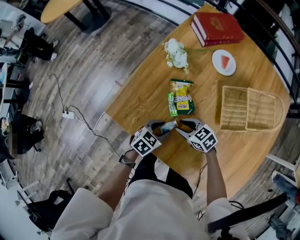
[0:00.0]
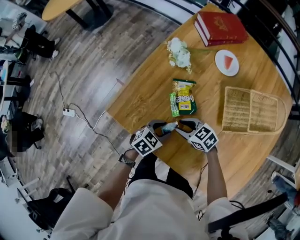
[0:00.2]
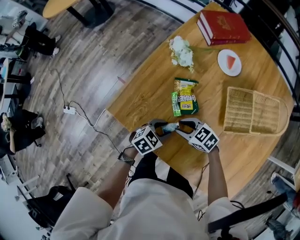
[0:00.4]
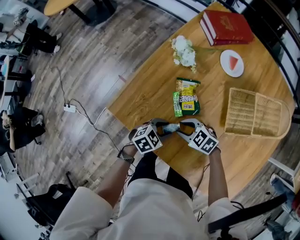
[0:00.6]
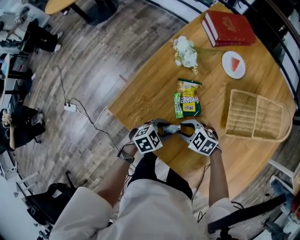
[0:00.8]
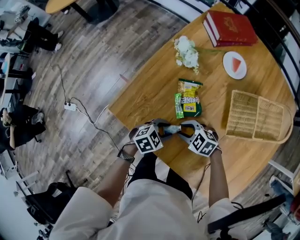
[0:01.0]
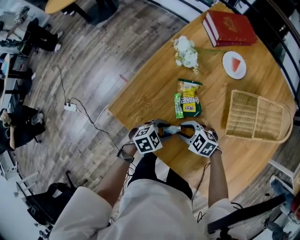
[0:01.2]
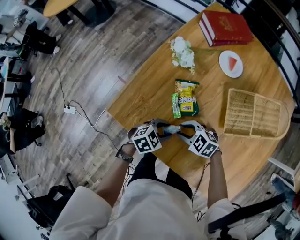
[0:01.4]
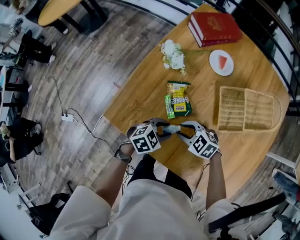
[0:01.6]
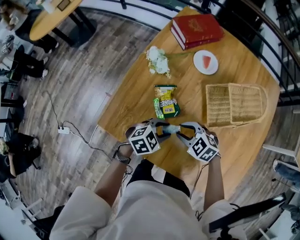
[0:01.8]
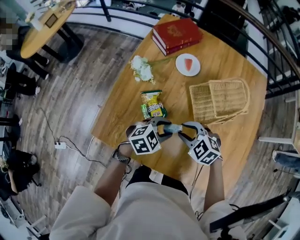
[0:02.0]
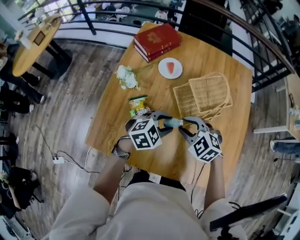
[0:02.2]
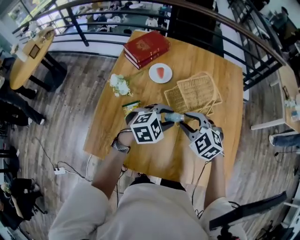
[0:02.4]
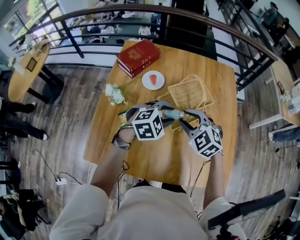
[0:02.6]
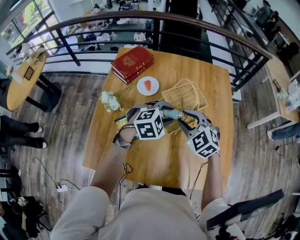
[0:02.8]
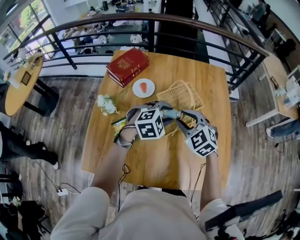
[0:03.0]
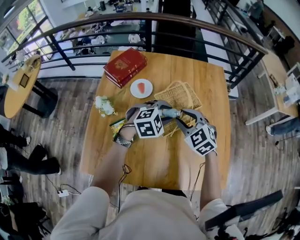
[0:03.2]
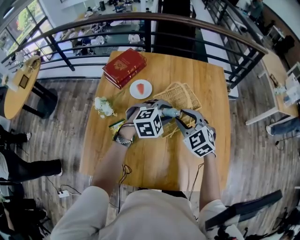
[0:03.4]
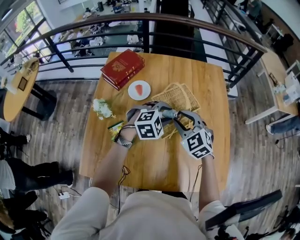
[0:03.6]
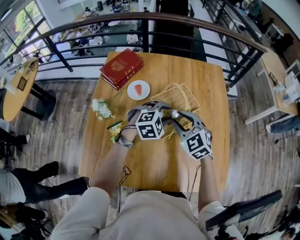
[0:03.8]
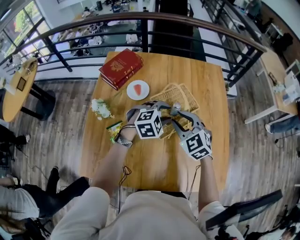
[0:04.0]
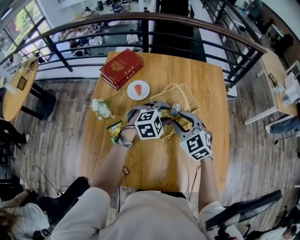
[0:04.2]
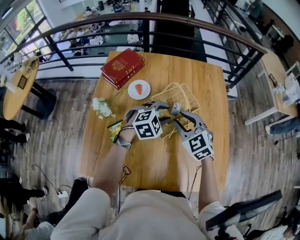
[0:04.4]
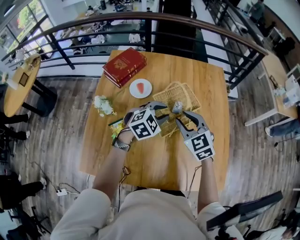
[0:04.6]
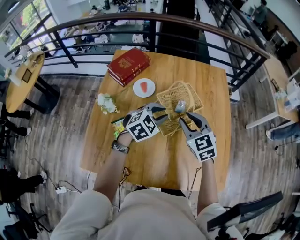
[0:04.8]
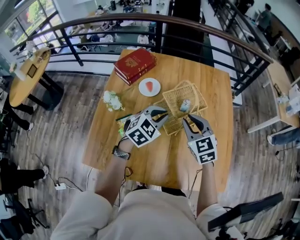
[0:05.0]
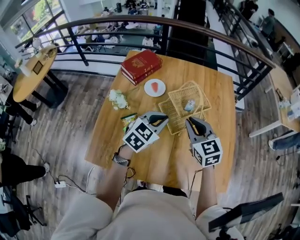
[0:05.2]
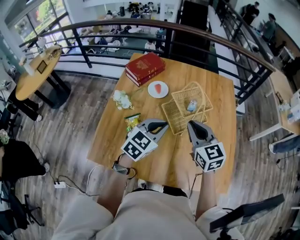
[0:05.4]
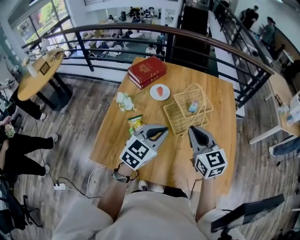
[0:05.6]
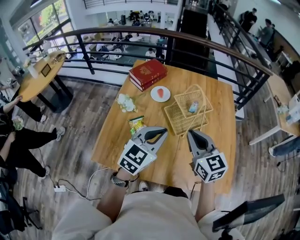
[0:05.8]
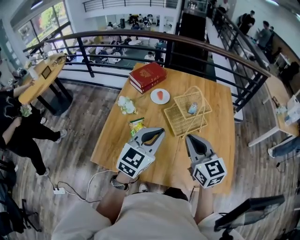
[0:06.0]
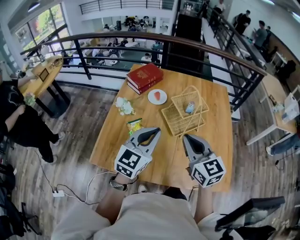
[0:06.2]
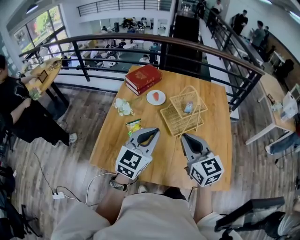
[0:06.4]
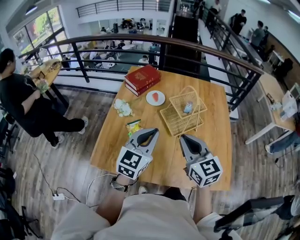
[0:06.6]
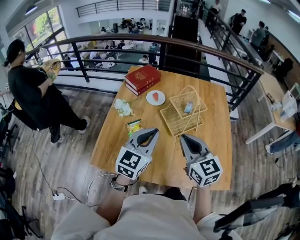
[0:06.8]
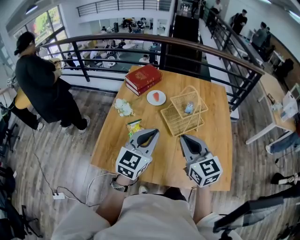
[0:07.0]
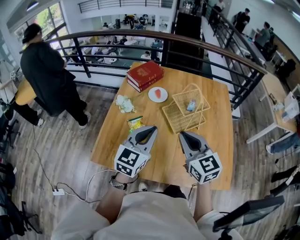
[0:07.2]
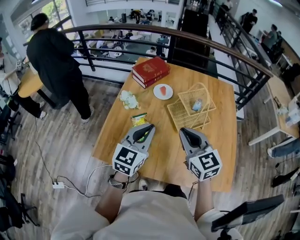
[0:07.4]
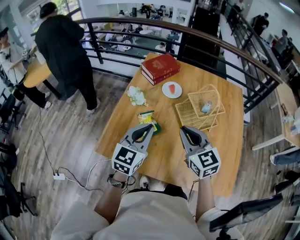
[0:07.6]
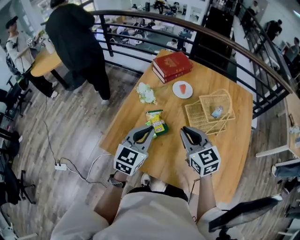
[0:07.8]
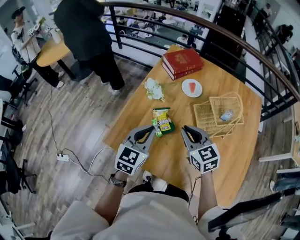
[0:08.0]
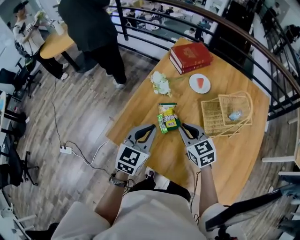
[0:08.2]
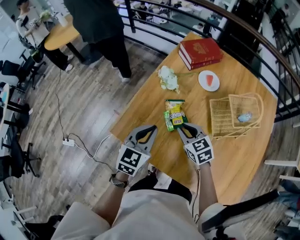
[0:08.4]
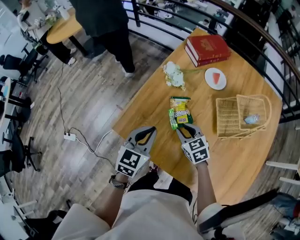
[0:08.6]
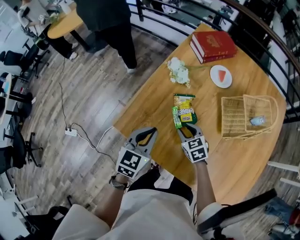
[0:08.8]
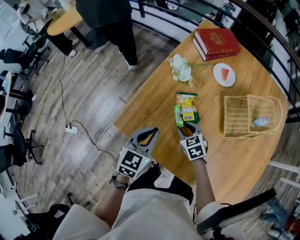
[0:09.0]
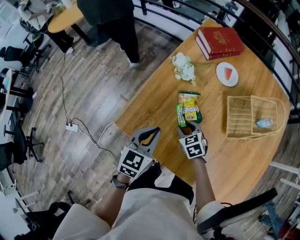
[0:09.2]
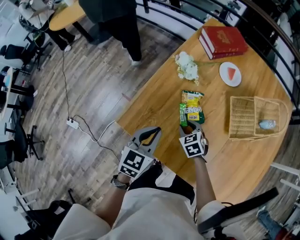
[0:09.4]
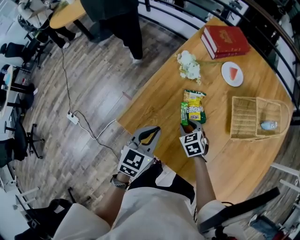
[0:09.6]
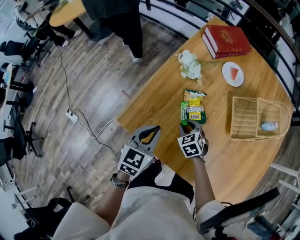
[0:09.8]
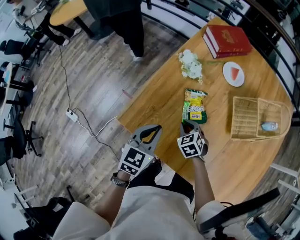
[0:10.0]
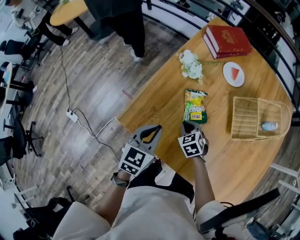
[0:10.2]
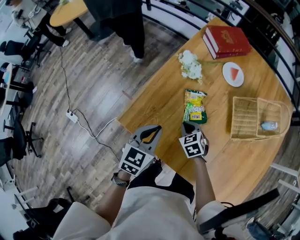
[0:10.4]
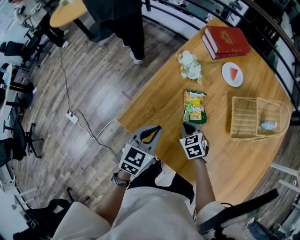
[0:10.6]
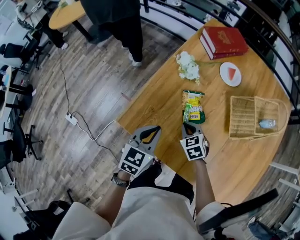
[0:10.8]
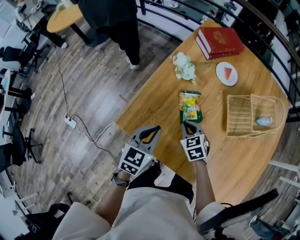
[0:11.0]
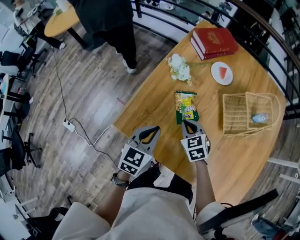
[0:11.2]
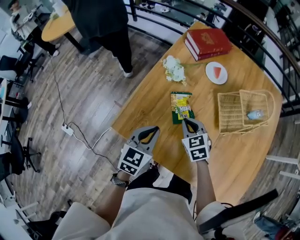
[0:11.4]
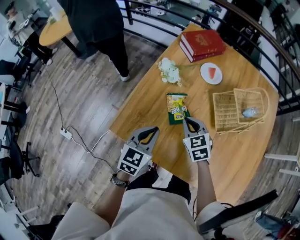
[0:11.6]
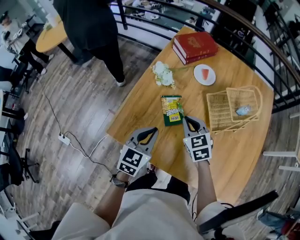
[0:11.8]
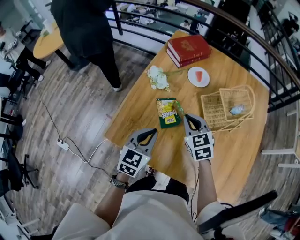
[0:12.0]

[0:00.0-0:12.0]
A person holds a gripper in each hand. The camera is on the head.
0:00.0 to 0:01.6: The right gripper rotates roughly 20 degrees, while the left gripper turns by roughly 20 degrees.
0:01.6 to 0:03.0: The left gripper moves approximately 35 cm, and twists roughly 50 degrees clockwise, seen from behind. Meanwhile the right gripper shifts by about 35 cm, and rotates about 50 degrees.
0:03.0 to 0:04.4: There are only small adjustments of the grippers.
0:04.4 to 0:06.0: The left gripper travels backward, upward and to the left by roughly 30 cm, tips its fingers upward by roughly 30 degrees, and closes, while the right gripper heads backward and upward, covering roughly 20 cm, swivels about 30 degrees, and closes up.
0:06.0 to 0:07.6: Both grippers move to the left, some 10 cm.
0:07.6 to 0:09.0: The left gripper shifts some 20 cm downward and to the left, and swivels about 20 degrees. The right gripper is displaced downward by some 30 cm, tips its fingers downward by some 30 degrees, and opens its fingers.
0:09.0 to 0:10.4: The right gripper closes up.
0:10.4 to 0:12.0: The left gripper travels to the right and upward by some 10 cm. Meanwhile the right gripper goes roughly 20 cm upward and to the right, and rotates some 20 degrees.

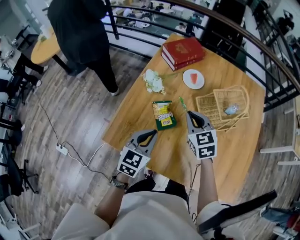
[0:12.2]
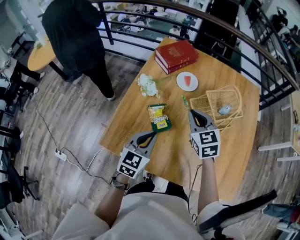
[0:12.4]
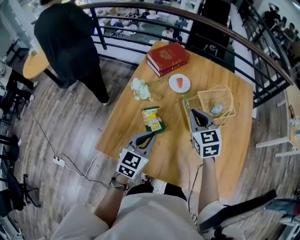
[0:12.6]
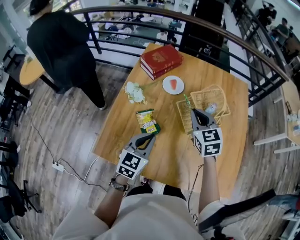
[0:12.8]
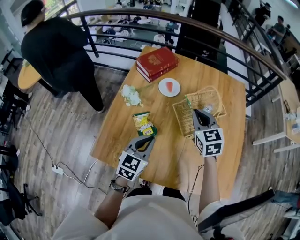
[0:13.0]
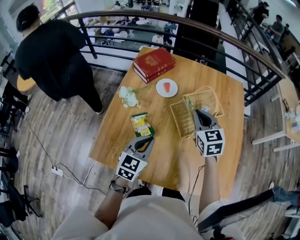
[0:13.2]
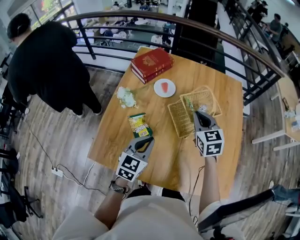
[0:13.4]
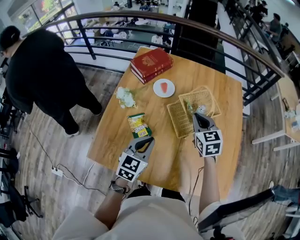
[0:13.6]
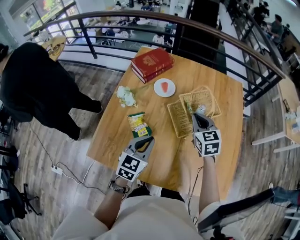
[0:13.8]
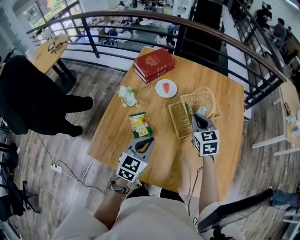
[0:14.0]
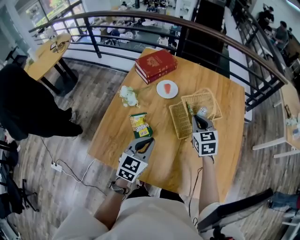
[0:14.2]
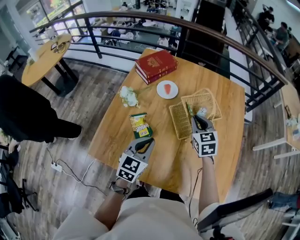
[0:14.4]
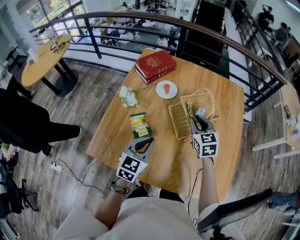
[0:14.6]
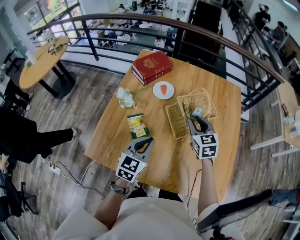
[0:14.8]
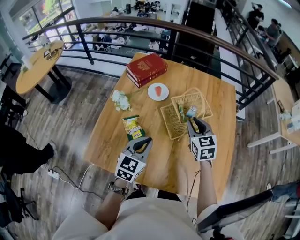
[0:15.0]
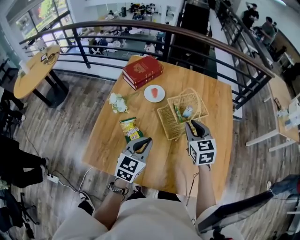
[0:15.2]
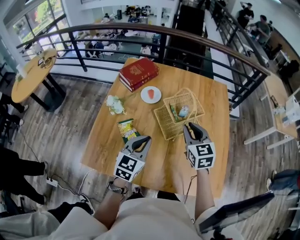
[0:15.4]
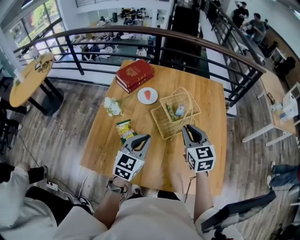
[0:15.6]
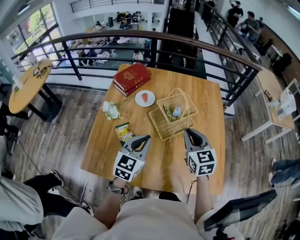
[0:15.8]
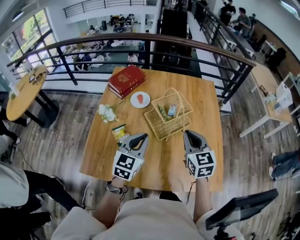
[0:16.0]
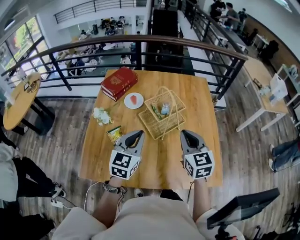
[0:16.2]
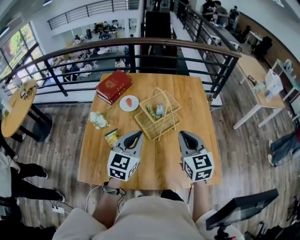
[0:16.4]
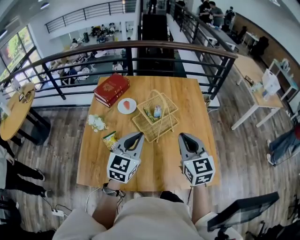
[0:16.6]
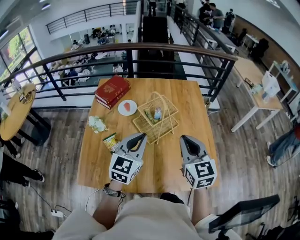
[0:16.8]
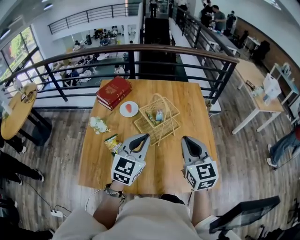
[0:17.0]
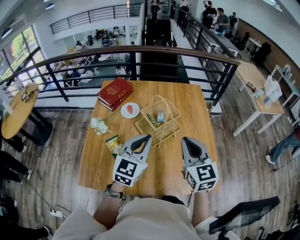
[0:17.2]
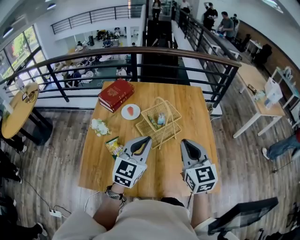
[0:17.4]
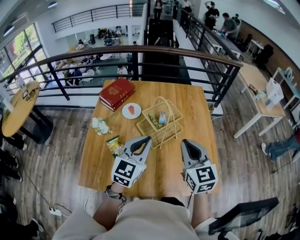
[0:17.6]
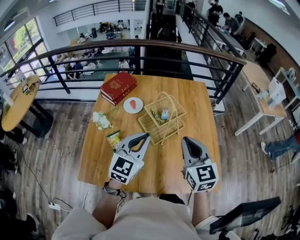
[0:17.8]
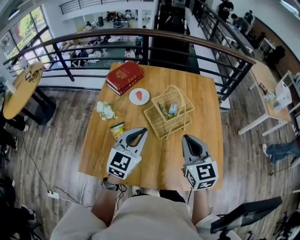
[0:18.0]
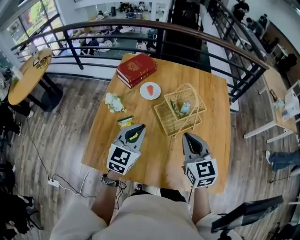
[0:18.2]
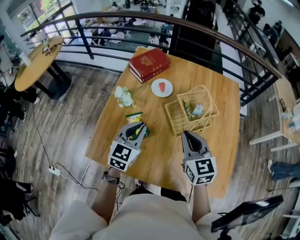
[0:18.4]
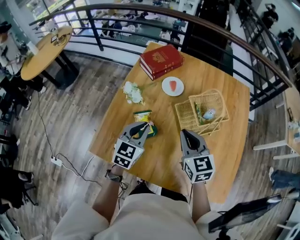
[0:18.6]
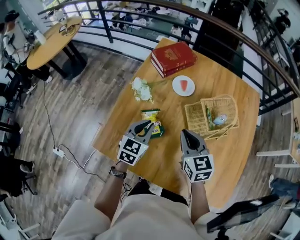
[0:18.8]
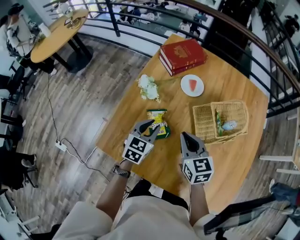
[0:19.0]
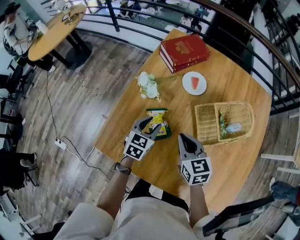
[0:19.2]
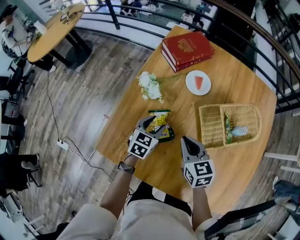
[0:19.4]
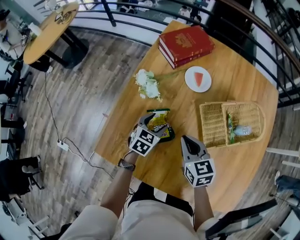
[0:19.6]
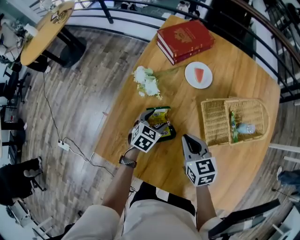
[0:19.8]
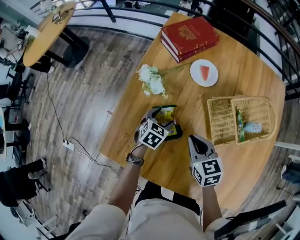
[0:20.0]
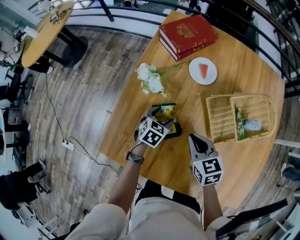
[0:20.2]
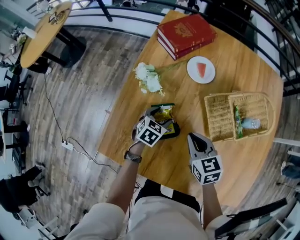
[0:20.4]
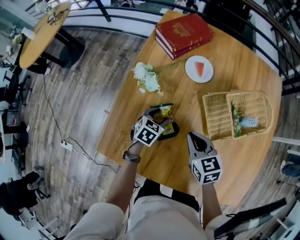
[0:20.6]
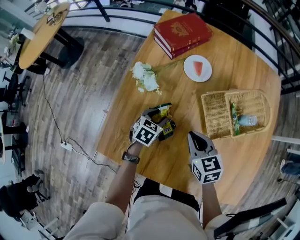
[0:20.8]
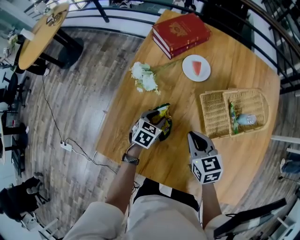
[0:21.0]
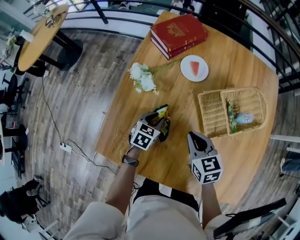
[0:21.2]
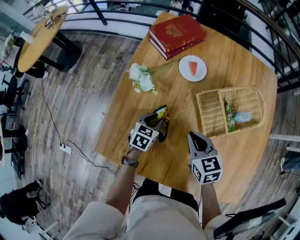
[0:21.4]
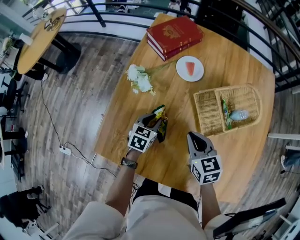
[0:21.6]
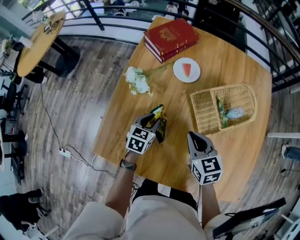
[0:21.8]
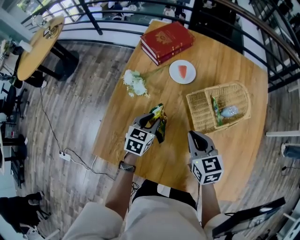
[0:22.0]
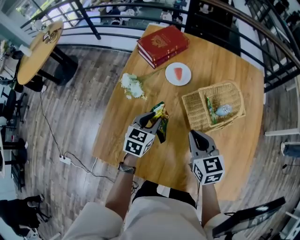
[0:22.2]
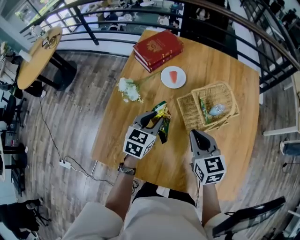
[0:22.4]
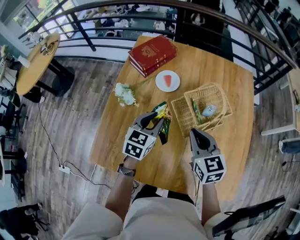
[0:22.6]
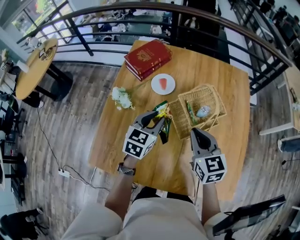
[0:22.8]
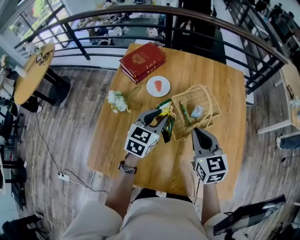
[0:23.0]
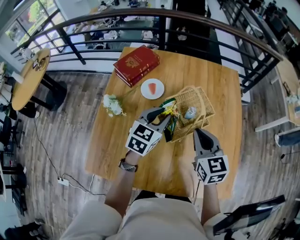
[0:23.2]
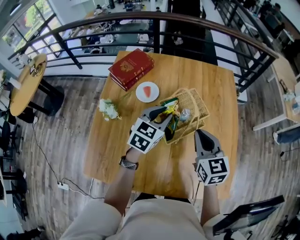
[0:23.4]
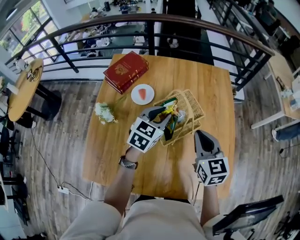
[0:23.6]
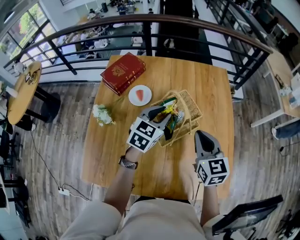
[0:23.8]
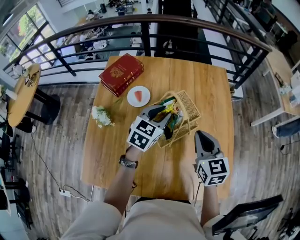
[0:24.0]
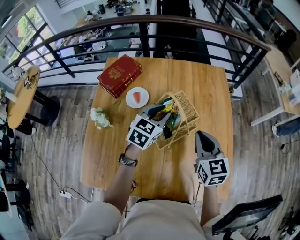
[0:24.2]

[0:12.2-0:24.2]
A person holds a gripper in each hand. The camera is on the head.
0:12.2 to 0:13.8: The right gripper travels to the right by about 15 cm. Meanwhile the left gripper shifts roughly 10 cm to the right.
0:13.8 to 0:15.2: The right gripper moves some 5 cm.
0:15.2 to 0:16.6: The left gripper shifts some 10 cm upward and to the right. Meanwhile the right gripper heads backward, upward and to the right, covering roughly 15 cm.
0:16.6 to 0:18.2: The two grippers go some 10 cm to the left.
0:18.2 to 0:19.8: The left gripper travels downward and forward by about 30 cm, angles its fingers downward, by some 30 degrees, and opens. Meanwhile the right gripper moves downward, to the left and forward, some 30 cm, and changes its angle by about 30 degrees.
0:19.8 to 0:21.2: The left gripper closes.
0:21.2 to 0:22.6: Both grippers travel together upward and to the right, roughly 20 cm.
0:22.6 to 0:24.2: The left gripper moves to the right and forward, about 20 cm, and changes its angle by about 20 degrees; the right gripper goes approximately 15 cm to the right.
